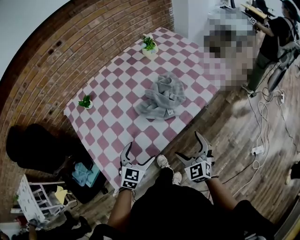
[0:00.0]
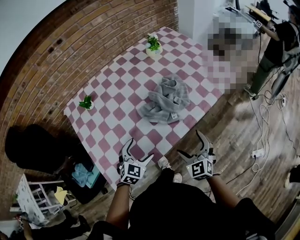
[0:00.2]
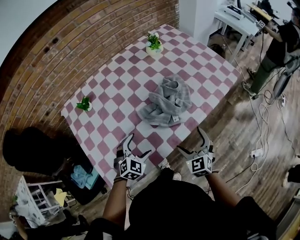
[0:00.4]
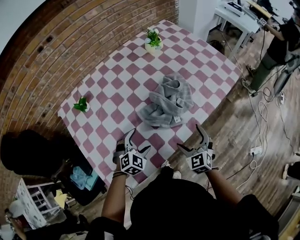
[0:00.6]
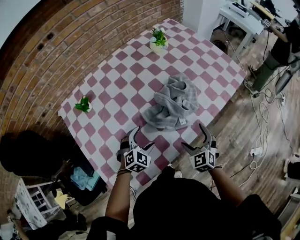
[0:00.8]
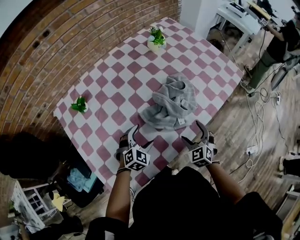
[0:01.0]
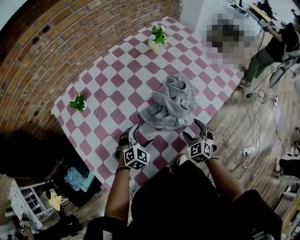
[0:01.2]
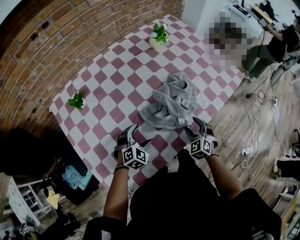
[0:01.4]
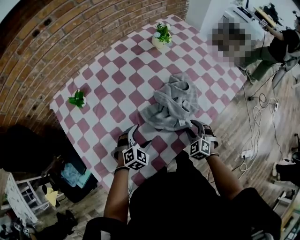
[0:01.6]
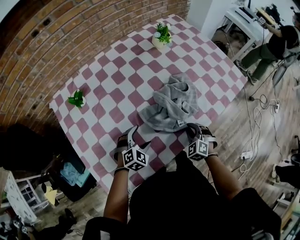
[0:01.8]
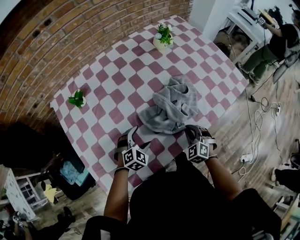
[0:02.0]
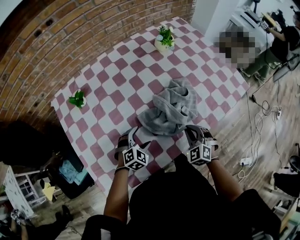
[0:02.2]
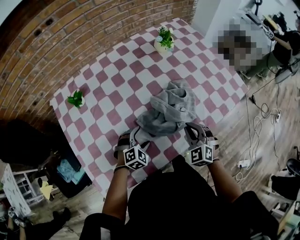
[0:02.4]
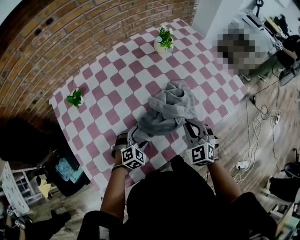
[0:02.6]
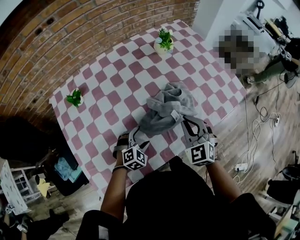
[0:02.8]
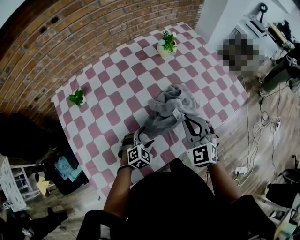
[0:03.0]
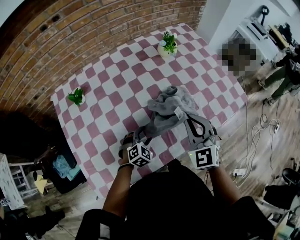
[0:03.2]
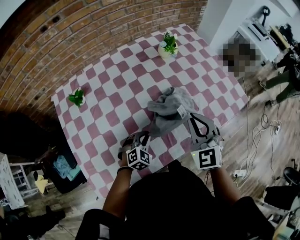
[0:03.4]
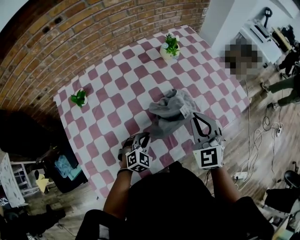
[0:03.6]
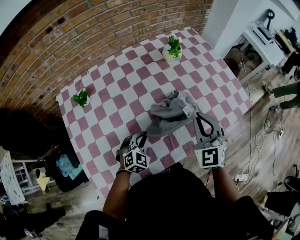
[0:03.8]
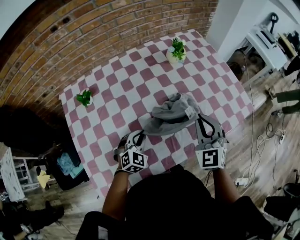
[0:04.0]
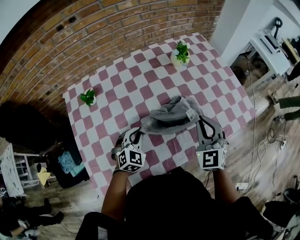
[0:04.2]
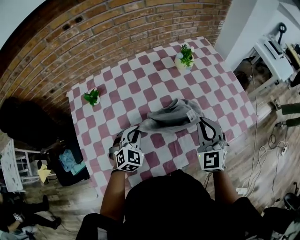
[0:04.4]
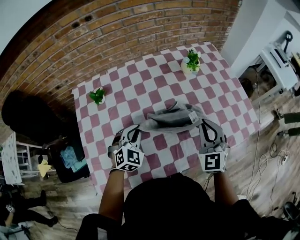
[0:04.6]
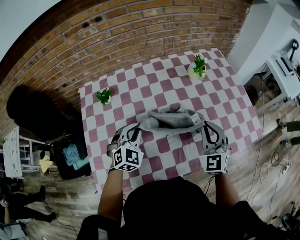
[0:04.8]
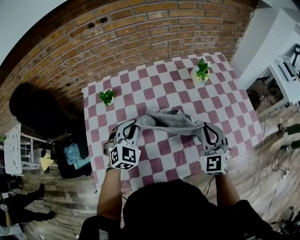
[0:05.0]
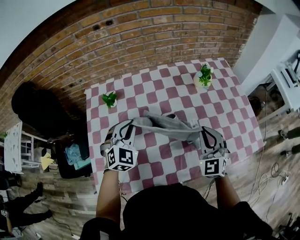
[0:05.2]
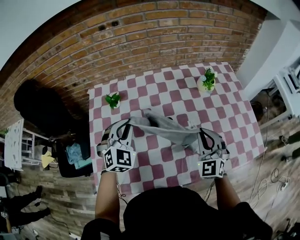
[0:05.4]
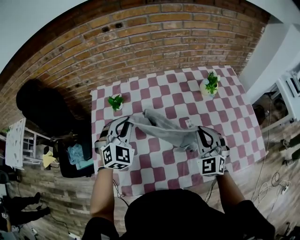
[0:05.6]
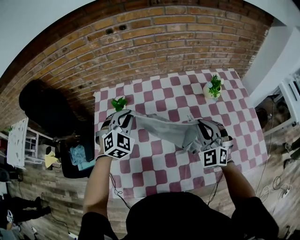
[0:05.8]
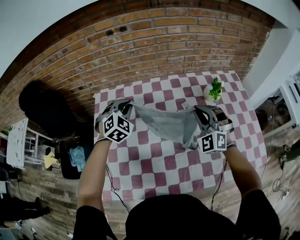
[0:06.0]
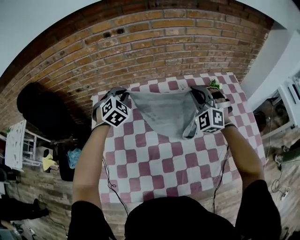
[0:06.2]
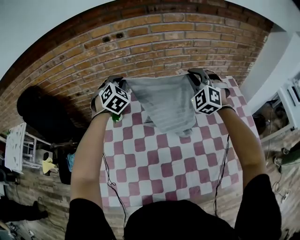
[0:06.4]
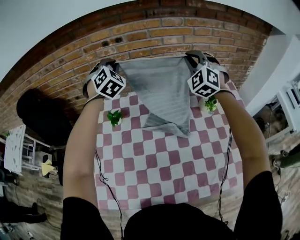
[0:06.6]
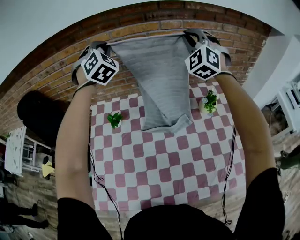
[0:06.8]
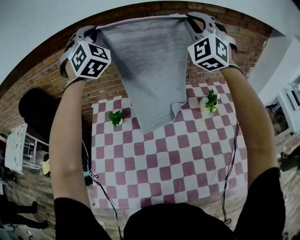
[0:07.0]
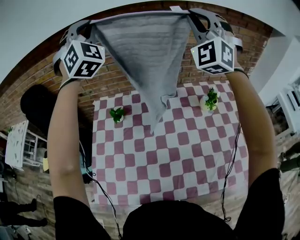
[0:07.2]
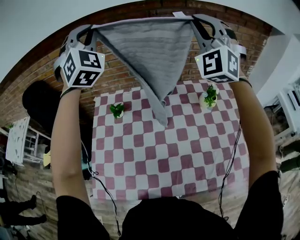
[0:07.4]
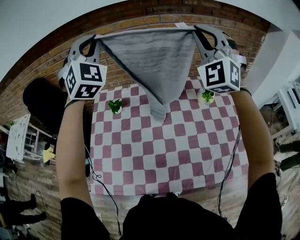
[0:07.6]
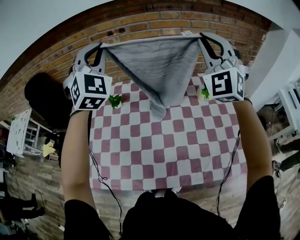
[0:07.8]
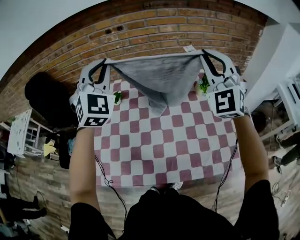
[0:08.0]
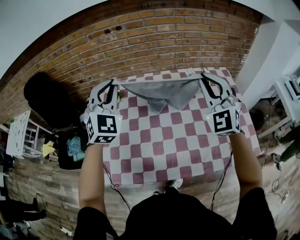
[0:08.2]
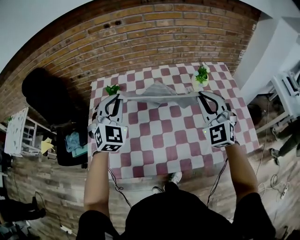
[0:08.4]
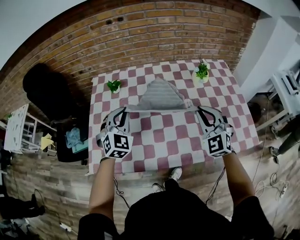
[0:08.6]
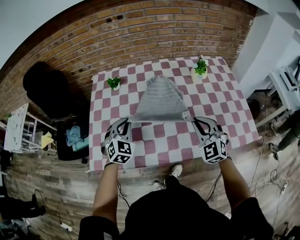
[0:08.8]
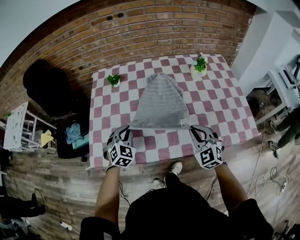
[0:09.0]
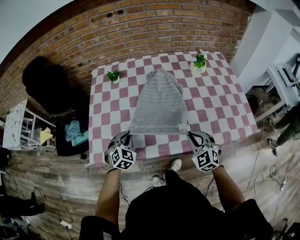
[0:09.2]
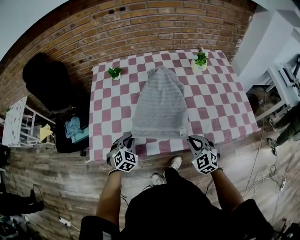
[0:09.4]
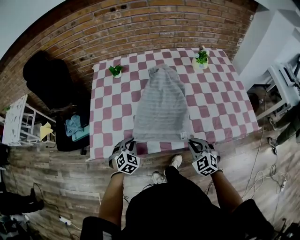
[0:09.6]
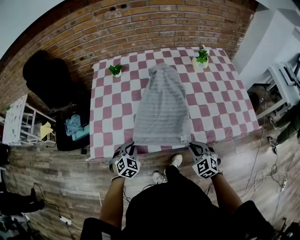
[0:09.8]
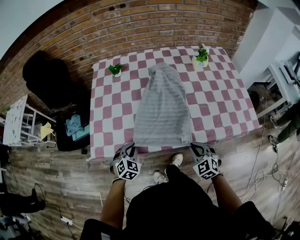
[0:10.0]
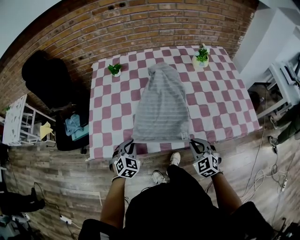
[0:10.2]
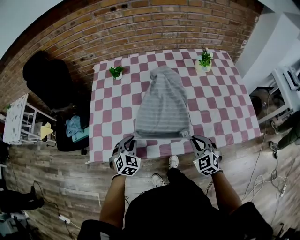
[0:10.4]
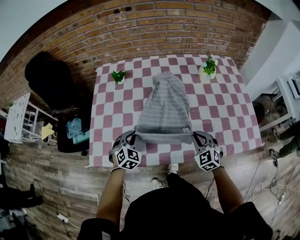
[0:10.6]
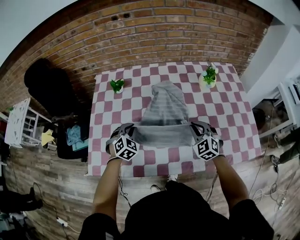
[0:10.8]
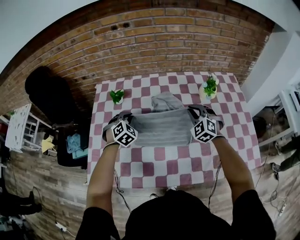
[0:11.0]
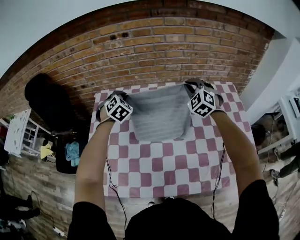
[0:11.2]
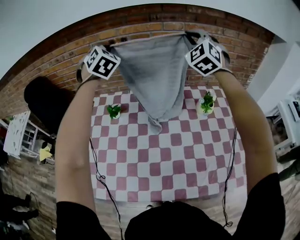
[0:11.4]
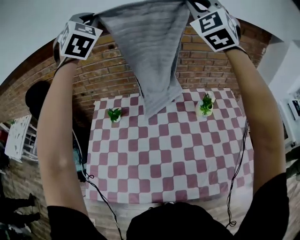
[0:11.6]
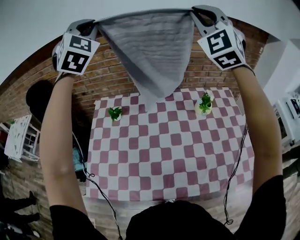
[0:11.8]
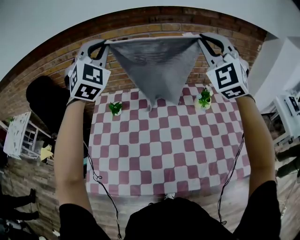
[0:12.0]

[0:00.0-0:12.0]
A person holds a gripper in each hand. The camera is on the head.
0:00.0 to 0:01.6: The two grippers go about 20 cm forward and downward. The right gripper swivels about 30 degrees, and closes. Meanwhile the left gripper turns by some 30 degrees.
0:01.6 to 0:03.0: The left gripper goes about 5 cm to the right, while the right gripper goes some 20 cm upward, and changes its angle by about 30 degrees.
0:03.0 to 0:04.4: The right gripper changes place by roughly 5 cm, while the left gripper travels upward, to the left and forward by roughly 15 cm, rotates about 20 degrees, and closes.
0:04.4 to 0:06.0: The right gripper heads forward and to the left, covering approximately 20 cm, and turns by roughly 40 degrees; the left gripper travels forward, to the left and upward by approximately 25 cm.
0:06.0 to 0:07.6: Both grippers travel together upward, some 35 cm. The right gripper changes its angle by about 30 degrees. Meanwhile the left gripper angles its fingers upward, by about 40 degrees.
0:07.6 to 0:09.0: Both grippers travel together downward and backward, about 50 cm. The right gripper tips its fingers downward by some 30 degrees. The left gripper tips its fingers downward by some 40 degrees.
0:09.0 to 0:10.4: The right gripper shifts some 10 cm downward. The left gripper shifts some 10 cm downward and backward.
0:10.4 to 0:12.0: The grippers both shift upward and forward by about 60 cm. The left gripper tips its fingers upward by about 40 degrees; the right gripper tilts its fingers roughly 40 degrees upward.

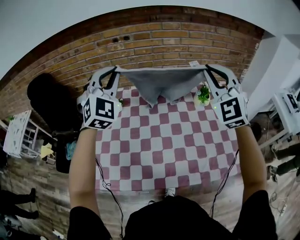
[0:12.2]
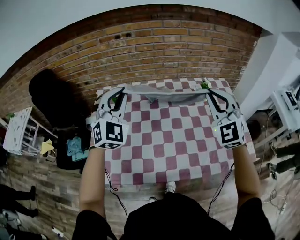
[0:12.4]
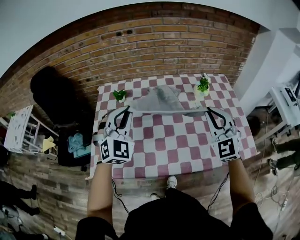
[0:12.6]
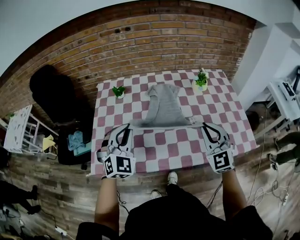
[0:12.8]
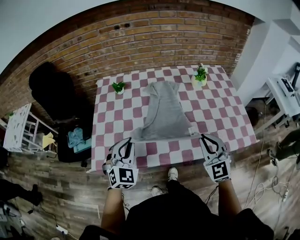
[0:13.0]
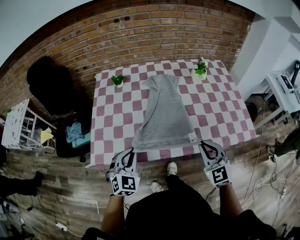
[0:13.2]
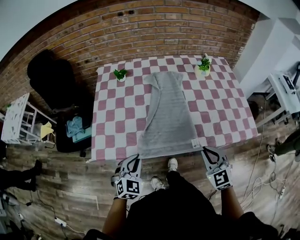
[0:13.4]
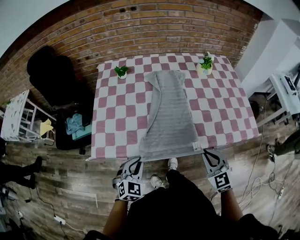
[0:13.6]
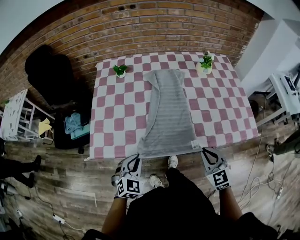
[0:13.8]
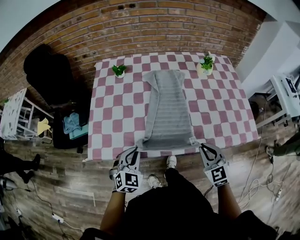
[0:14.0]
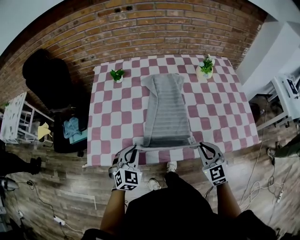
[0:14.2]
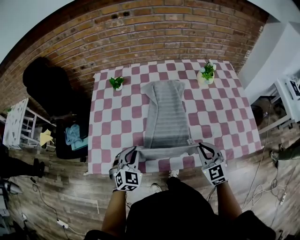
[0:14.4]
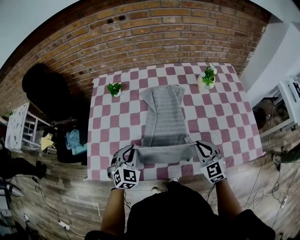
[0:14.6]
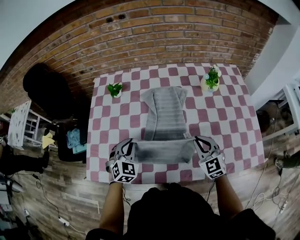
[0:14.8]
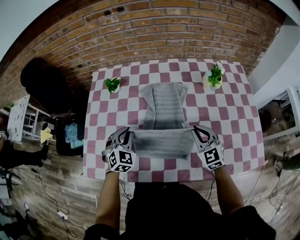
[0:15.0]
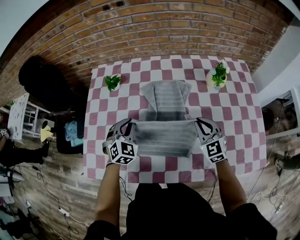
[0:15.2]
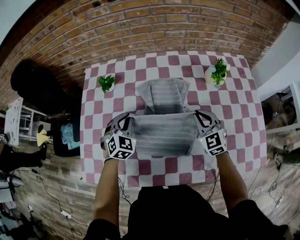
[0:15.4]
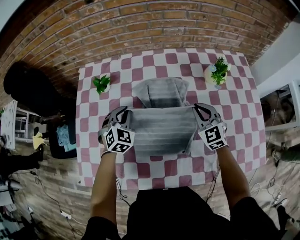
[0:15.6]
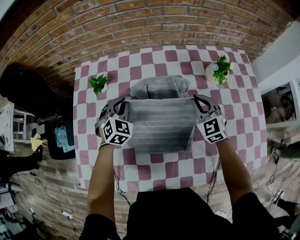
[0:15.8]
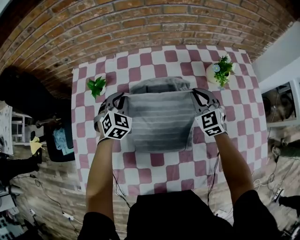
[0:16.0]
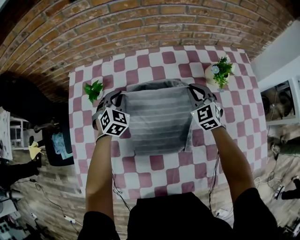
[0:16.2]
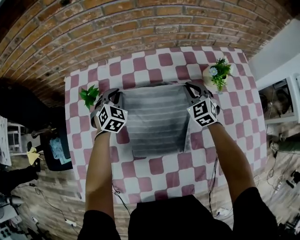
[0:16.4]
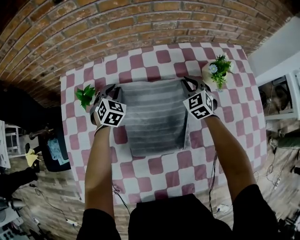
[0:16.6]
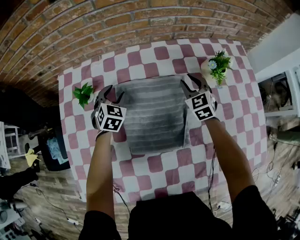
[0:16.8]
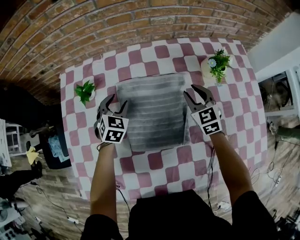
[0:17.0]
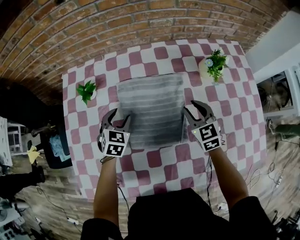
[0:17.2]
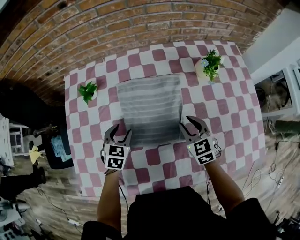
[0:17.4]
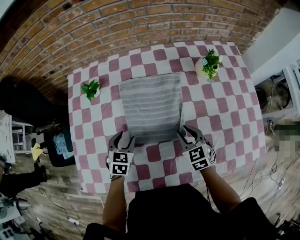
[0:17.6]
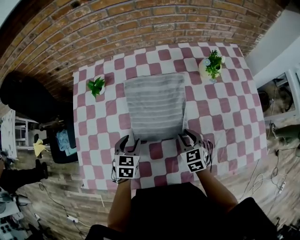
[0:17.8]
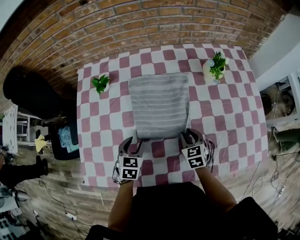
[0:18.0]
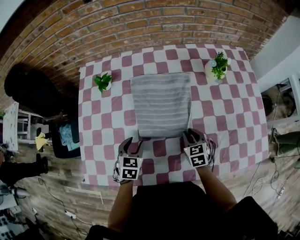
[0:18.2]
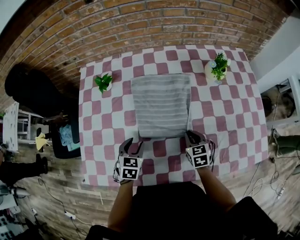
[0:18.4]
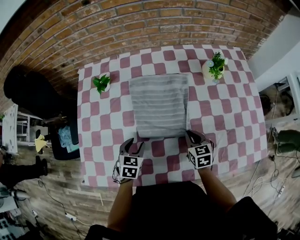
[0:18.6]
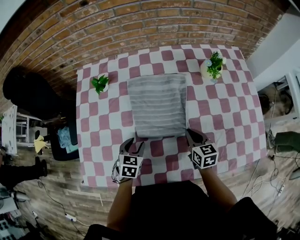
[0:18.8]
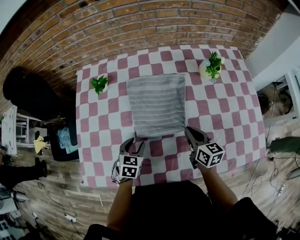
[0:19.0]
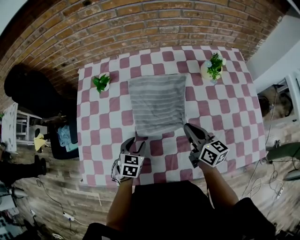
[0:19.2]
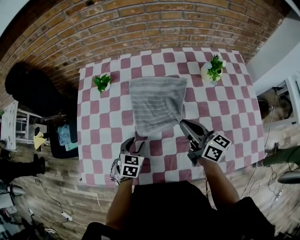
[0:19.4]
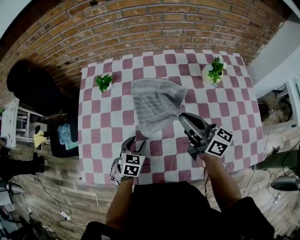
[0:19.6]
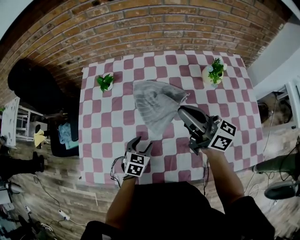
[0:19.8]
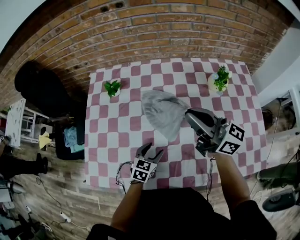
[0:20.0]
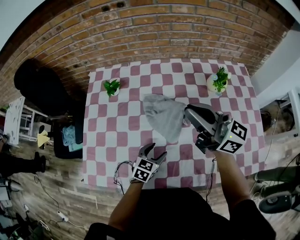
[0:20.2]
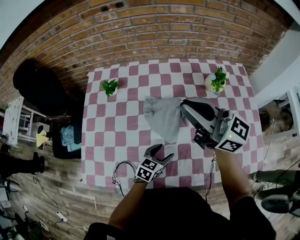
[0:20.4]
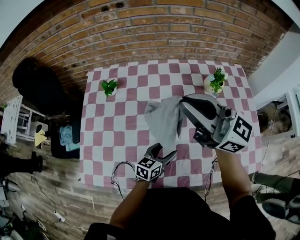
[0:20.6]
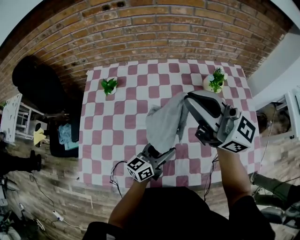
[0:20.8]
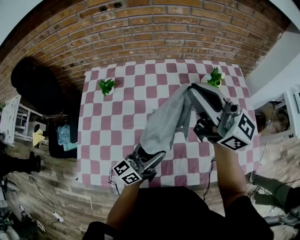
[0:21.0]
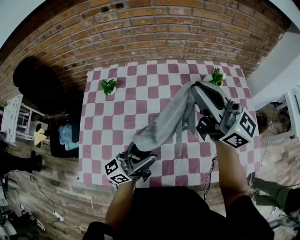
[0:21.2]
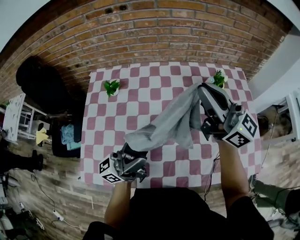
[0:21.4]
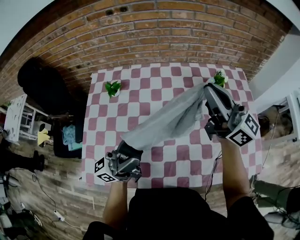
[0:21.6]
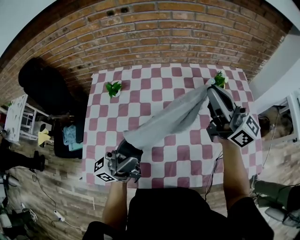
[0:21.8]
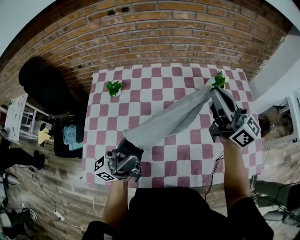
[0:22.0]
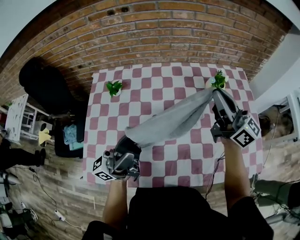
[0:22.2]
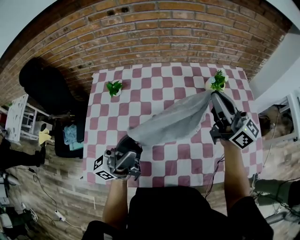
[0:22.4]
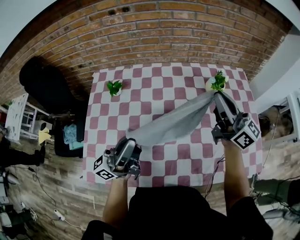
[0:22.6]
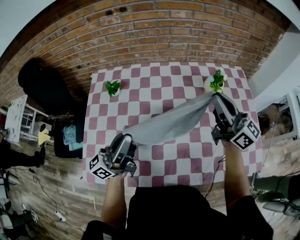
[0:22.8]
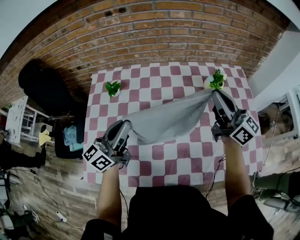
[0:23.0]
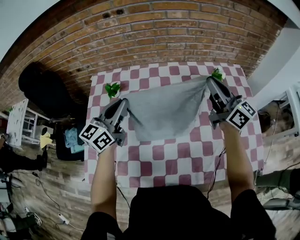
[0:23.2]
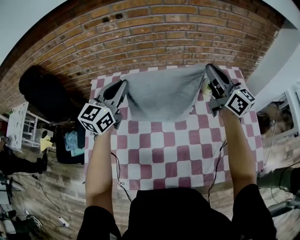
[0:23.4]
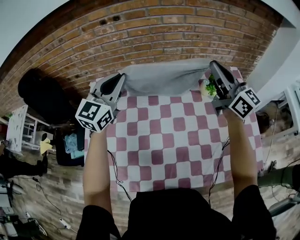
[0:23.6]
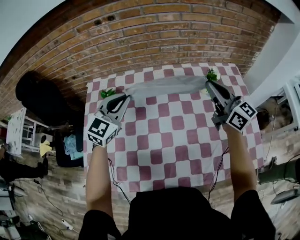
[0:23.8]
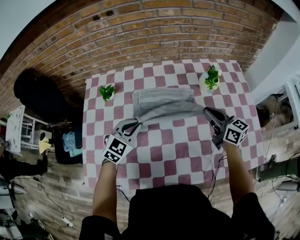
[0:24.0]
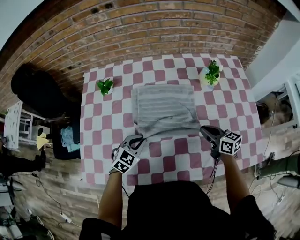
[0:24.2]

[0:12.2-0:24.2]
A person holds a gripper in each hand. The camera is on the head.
0:12.2 to 0:13.8: The grippers both shift downward and backward by some 50 cm. The right gripper rotates some 40 degrees. Meanwhile the left gripper changes its angle by about 40 degrees.
0:13.8 to 0:15.2: Both grippers move forward, roughly 35 cm.
0:15.2 to 0:16.6: Both grippers move forward, roughly 25 cm. The right gripper turns by some 20 degrees.
0:16.6 to 0:18.2: The two grippers go some 30 cm backward. The right gripper swivels about 30 degrees. Meanwhile the left gripper changes its angle by some 30 degrees.
0:18.2 to 0:19.8: The left gripper changes place by some 5 cm. The right gripper goes roughly 30 cm upward, and tips its fingers upward by some 60 degrees.
0:19.8 to 0:21.2: The left gripper travels upward by roughly 25 cm, and tips its fingers upward by approximately 70 degrees; the right gripper moves upward, some 15 cm, and turns by about 30 degrees.
0:21.2 to 0:22.6: The left gripper moves to the left, roughly 5 cm, and closes its fingers; the right gripper goes roughly 10 cm to the right and downward.
0:22.6 to 0:24.2: Both grippers move downward, some 25 cm. The right gripper angles its fingers downward, by approximately 40 degrees; the left gripper points its fingers some 70 degrees further downward.
